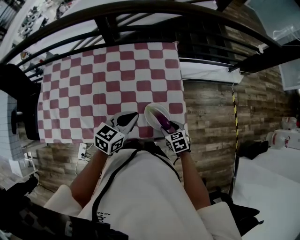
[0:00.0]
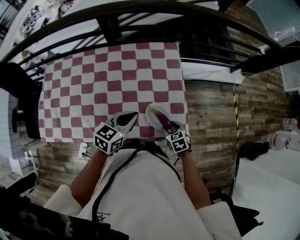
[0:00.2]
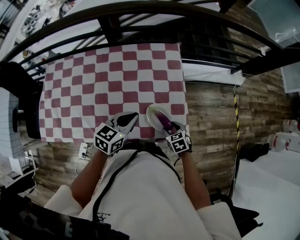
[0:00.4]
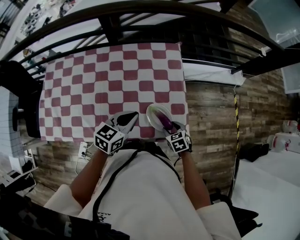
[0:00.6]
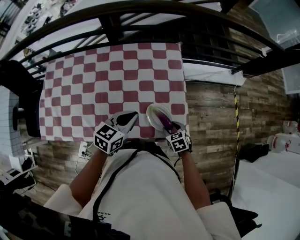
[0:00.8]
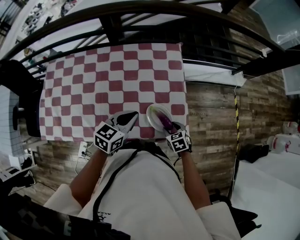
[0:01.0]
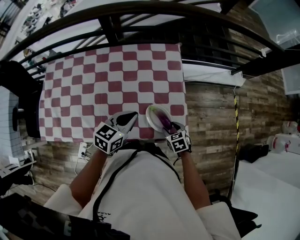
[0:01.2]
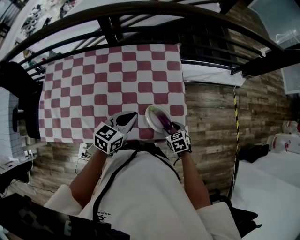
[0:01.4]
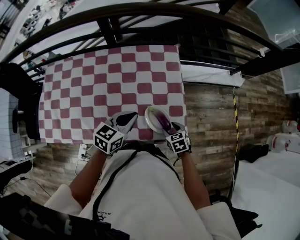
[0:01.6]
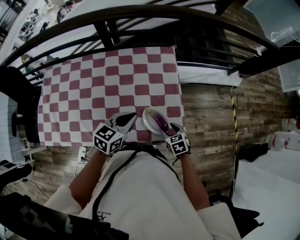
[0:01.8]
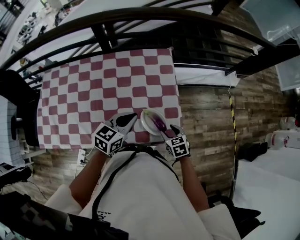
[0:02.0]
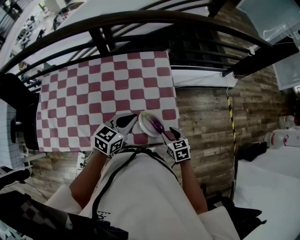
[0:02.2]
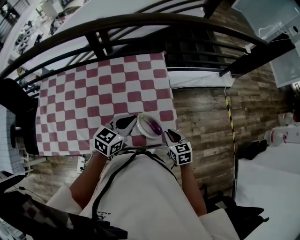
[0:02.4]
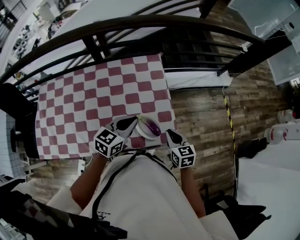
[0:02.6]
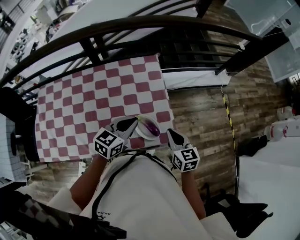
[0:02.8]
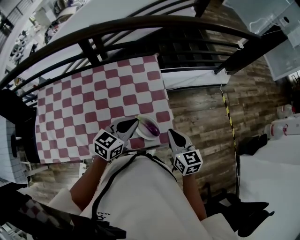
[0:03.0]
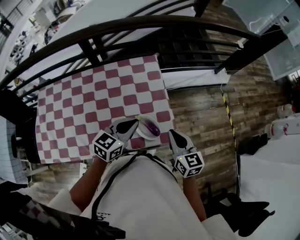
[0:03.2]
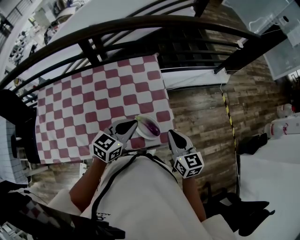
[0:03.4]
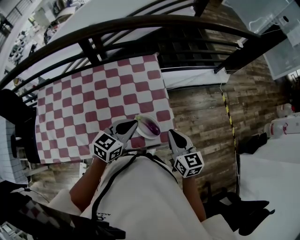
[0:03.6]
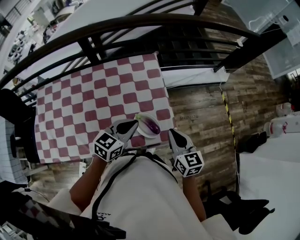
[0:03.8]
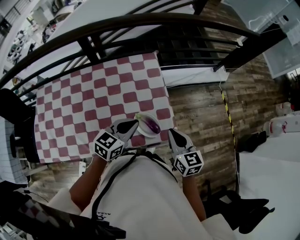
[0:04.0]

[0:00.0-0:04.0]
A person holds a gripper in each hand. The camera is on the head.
0:00.0 to 0:01.4: There are only small adjustments of the grippers.
0:01.4 to 0:02.6: The right gripper shifts roughly 15 cm upward, rotates approximately 30 degrees, and closes; the left gripper travels to the right by approximately 5 cm.
0:02.6 to 0:04.0: The right gripper heads upward, covering some 10 cm.

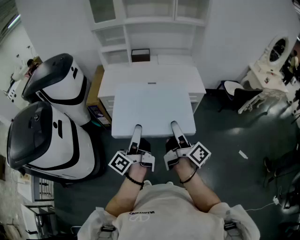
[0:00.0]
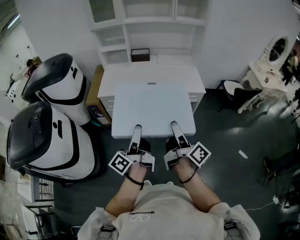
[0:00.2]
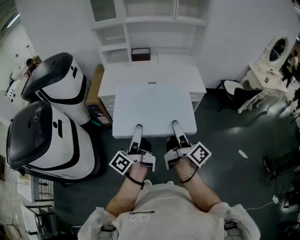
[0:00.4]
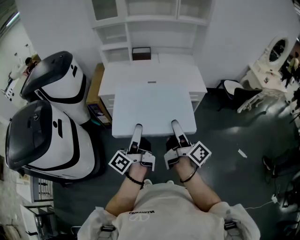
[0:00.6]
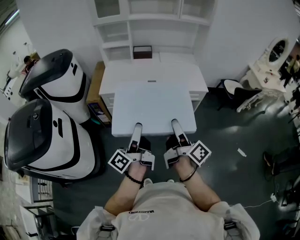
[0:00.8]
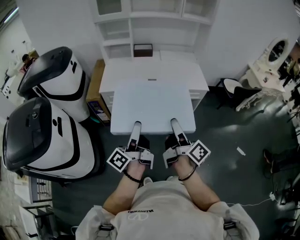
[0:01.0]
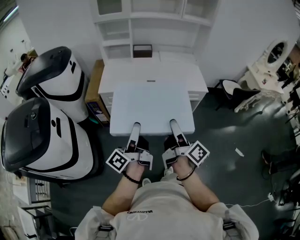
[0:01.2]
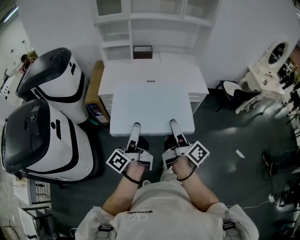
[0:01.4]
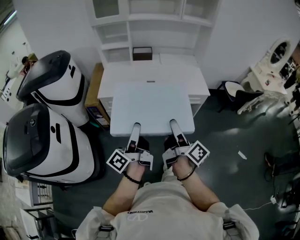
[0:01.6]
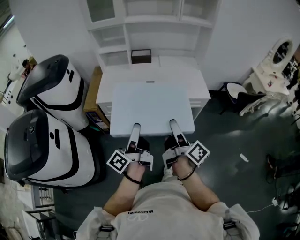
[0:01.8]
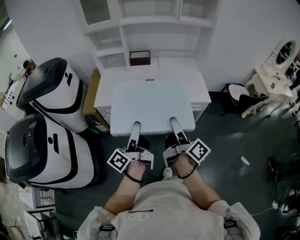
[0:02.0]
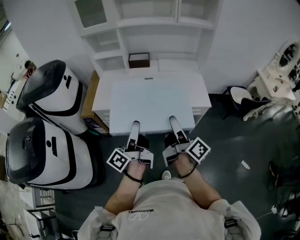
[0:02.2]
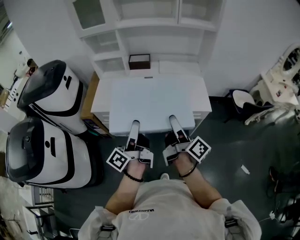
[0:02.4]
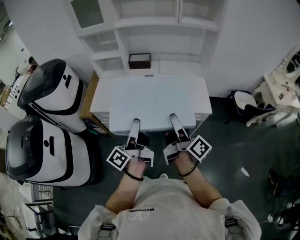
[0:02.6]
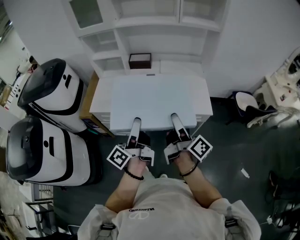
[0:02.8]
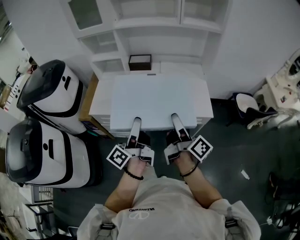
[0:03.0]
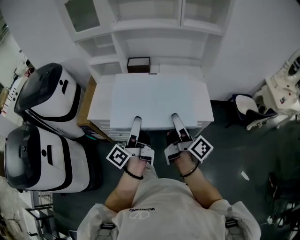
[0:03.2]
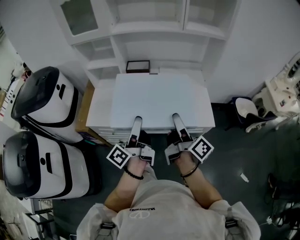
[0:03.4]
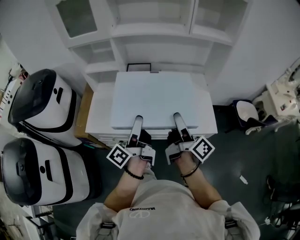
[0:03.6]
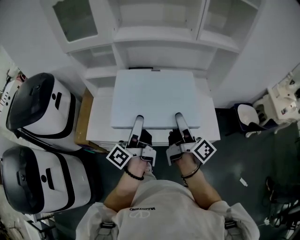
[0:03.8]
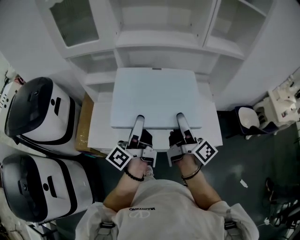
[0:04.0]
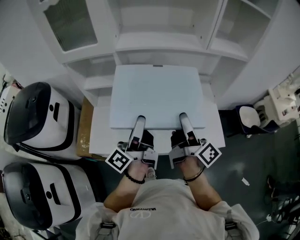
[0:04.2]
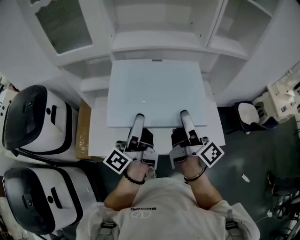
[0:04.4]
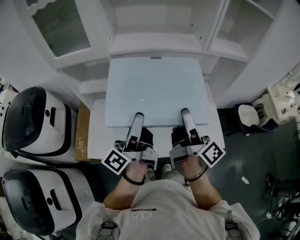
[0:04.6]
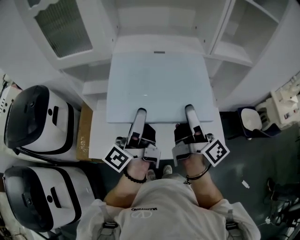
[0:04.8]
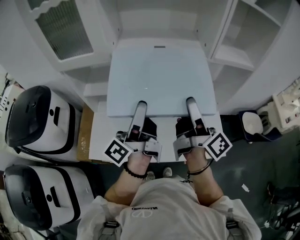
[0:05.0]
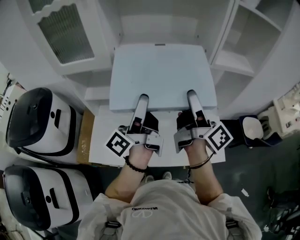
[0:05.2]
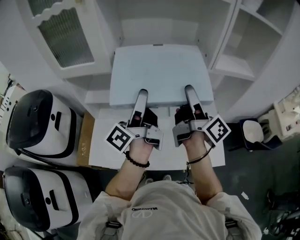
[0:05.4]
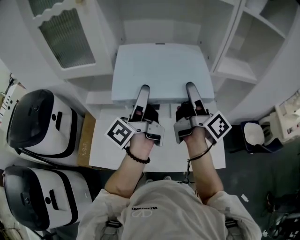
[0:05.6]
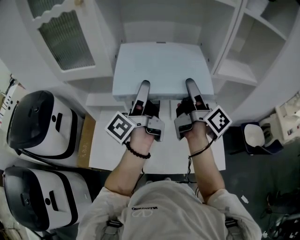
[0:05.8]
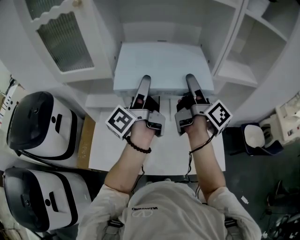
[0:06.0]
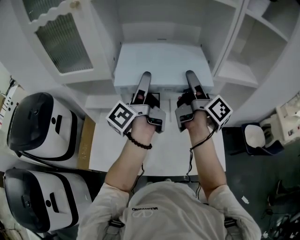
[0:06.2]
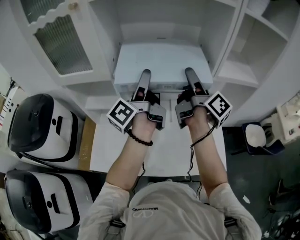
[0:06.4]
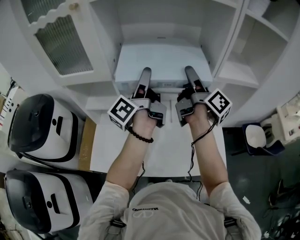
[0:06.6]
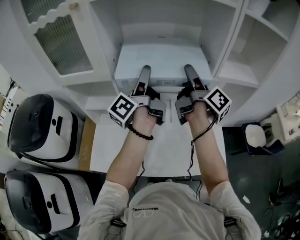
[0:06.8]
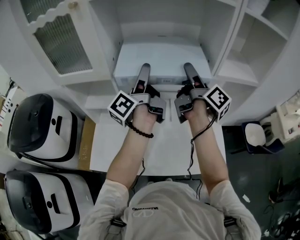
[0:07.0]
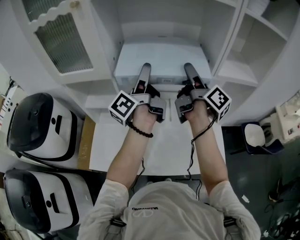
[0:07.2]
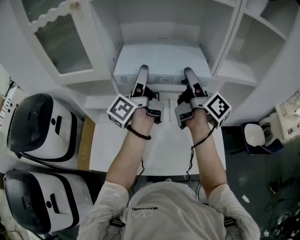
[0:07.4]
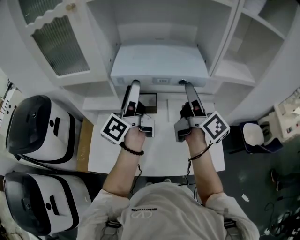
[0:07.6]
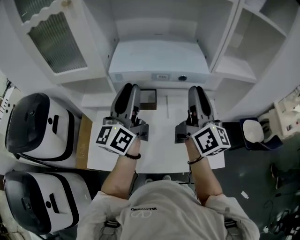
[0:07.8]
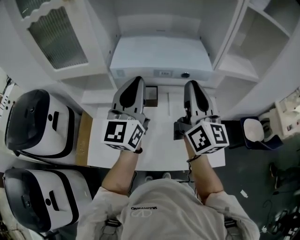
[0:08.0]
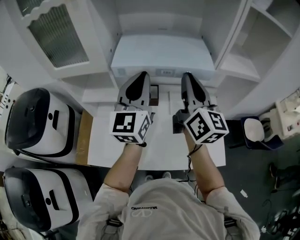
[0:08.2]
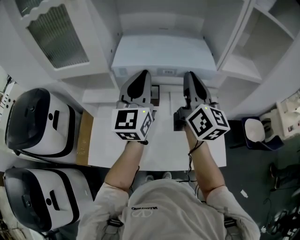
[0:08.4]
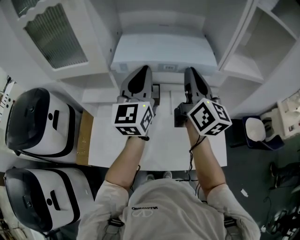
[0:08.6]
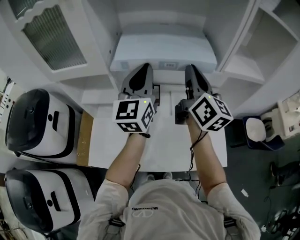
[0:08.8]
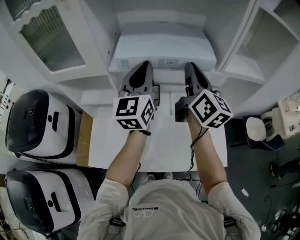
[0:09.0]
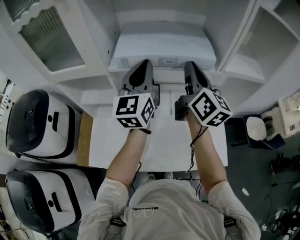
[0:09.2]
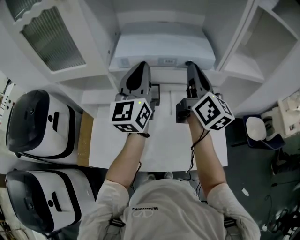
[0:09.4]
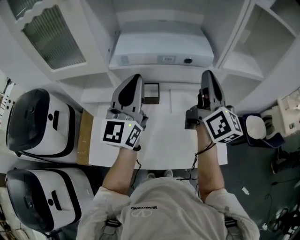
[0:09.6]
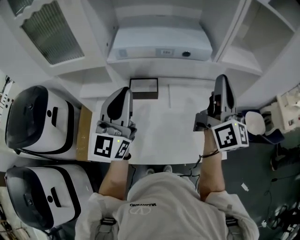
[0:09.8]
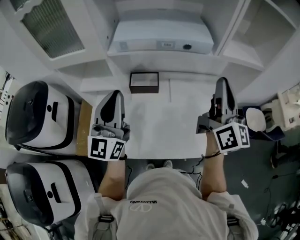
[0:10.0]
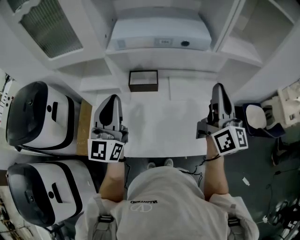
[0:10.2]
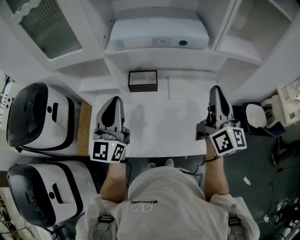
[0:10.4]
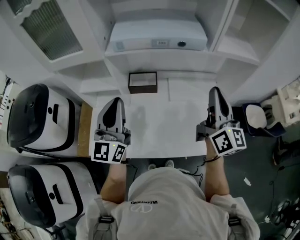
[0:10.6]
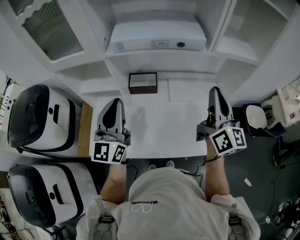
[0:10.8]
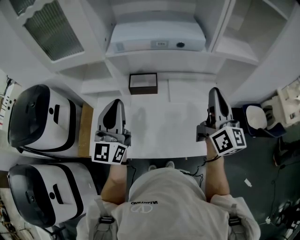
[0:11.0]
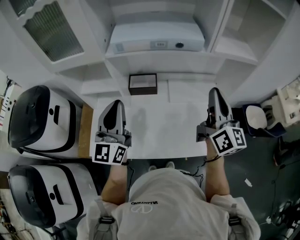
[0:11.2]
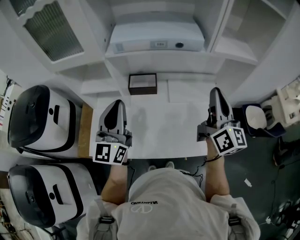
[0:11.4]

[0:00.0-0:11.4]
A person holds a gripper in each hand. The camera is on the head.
0:00.0 to 0:01.4: Both grippers move to the left, about 5 cm.
0:01.4 to 0:02.8: Both grippers travel together forward and to the right, about 25 cm.
0:02.8 to 0:04.2: Both grippers travel together forward, some 30 cm.
0:04.2 to 0:05.6: The grippers both shift forward and upward by approximately 20 cm.
0:05.6 to 0:07.2: Both grippers move forward, some 10 cm.
0:07.2 to 0:08.6: The right gripper twists some 50 degrees counterclockwise, seen from behind, and closes its fingers. Meanwhile the left gripper travels backward and back again, about 10 cm each way, rolls clockwise, seen from behind, by some 70 degrees, and closes.
0:08.6 to 0:10.0: The right gripper shifts roughly 15 cm to the right and backward; the left gripper heads backward and to the left, covering about 15 cm.
0:10.0 to 0:11.4: The right gripper shifts approximately 5 cm downward.

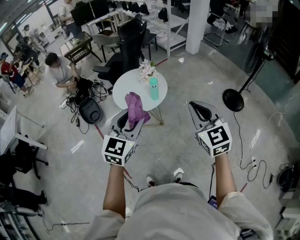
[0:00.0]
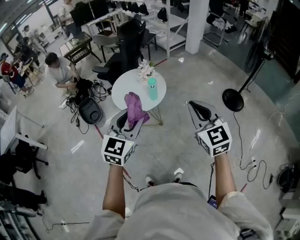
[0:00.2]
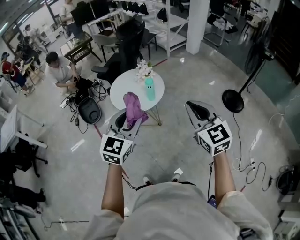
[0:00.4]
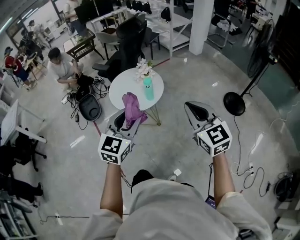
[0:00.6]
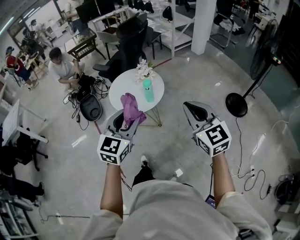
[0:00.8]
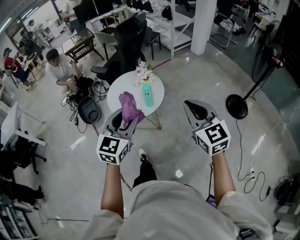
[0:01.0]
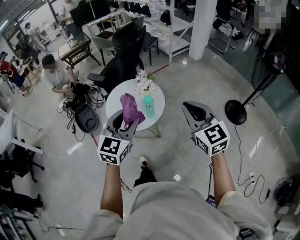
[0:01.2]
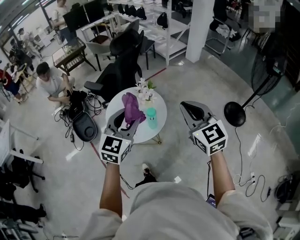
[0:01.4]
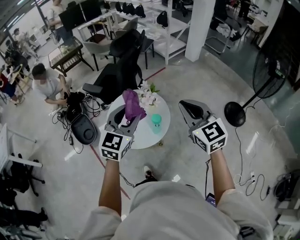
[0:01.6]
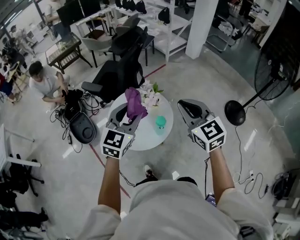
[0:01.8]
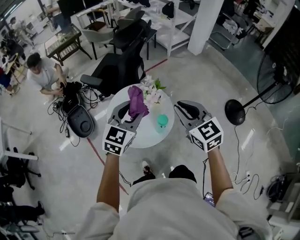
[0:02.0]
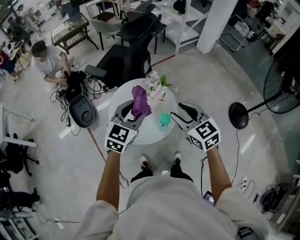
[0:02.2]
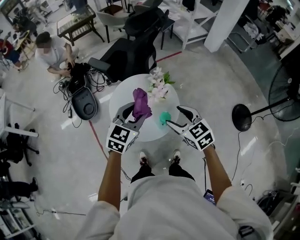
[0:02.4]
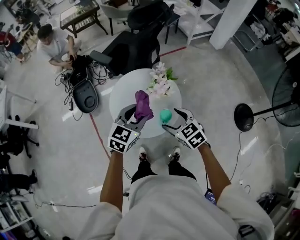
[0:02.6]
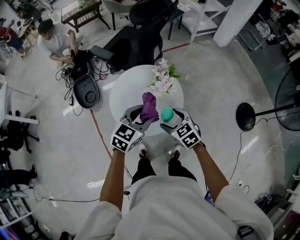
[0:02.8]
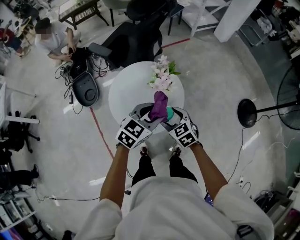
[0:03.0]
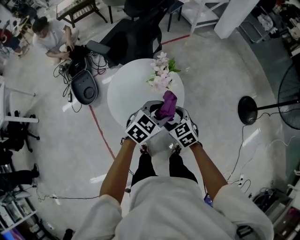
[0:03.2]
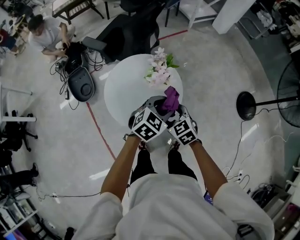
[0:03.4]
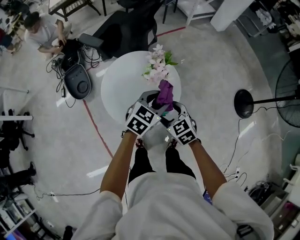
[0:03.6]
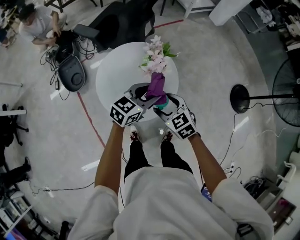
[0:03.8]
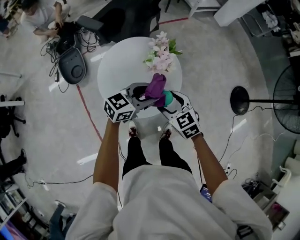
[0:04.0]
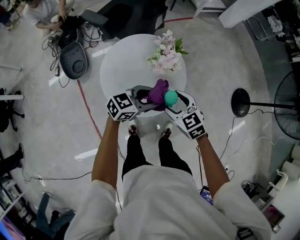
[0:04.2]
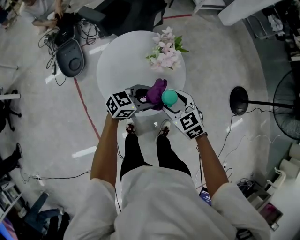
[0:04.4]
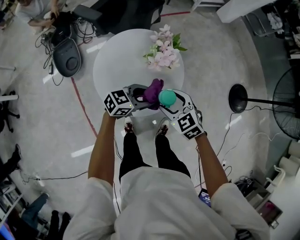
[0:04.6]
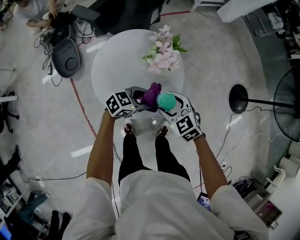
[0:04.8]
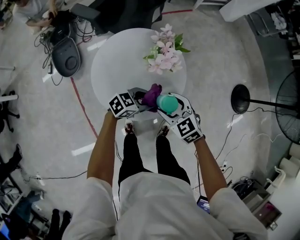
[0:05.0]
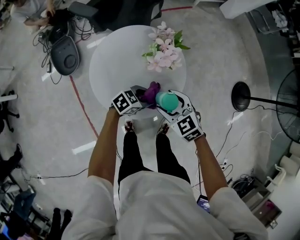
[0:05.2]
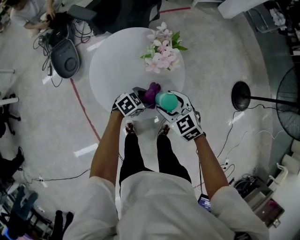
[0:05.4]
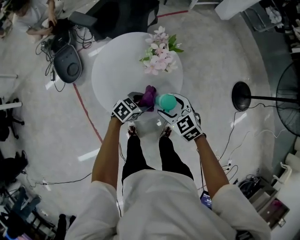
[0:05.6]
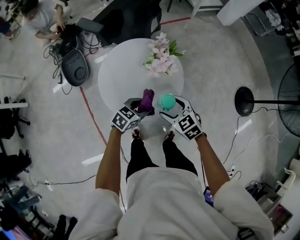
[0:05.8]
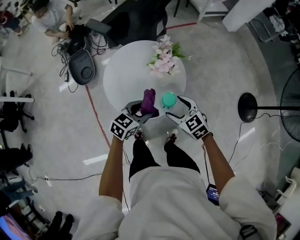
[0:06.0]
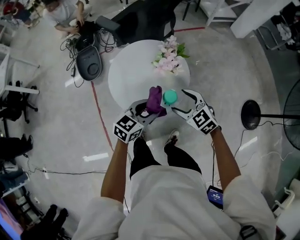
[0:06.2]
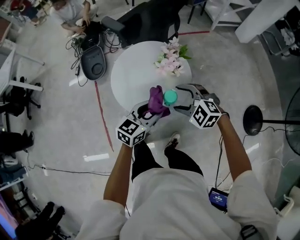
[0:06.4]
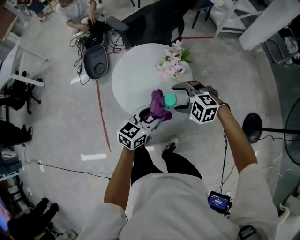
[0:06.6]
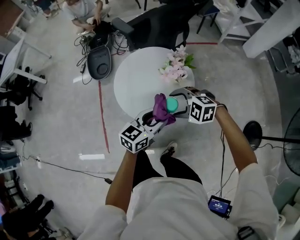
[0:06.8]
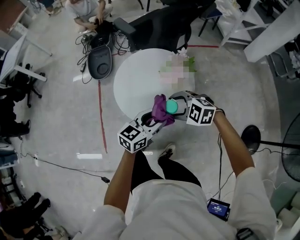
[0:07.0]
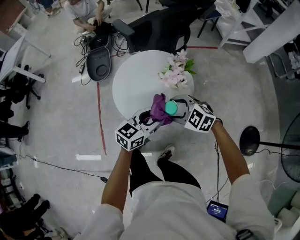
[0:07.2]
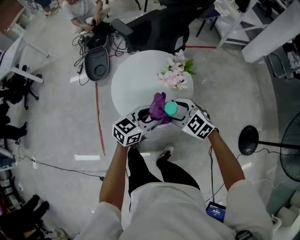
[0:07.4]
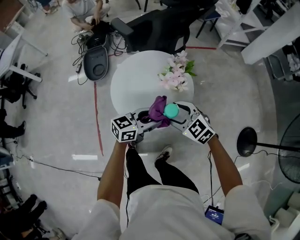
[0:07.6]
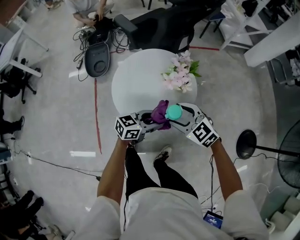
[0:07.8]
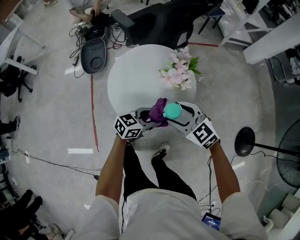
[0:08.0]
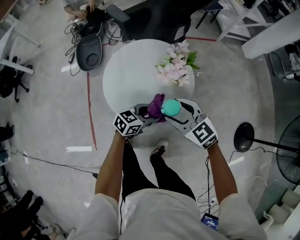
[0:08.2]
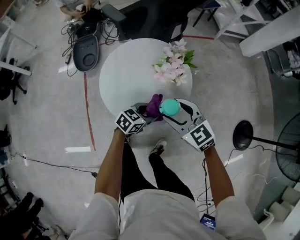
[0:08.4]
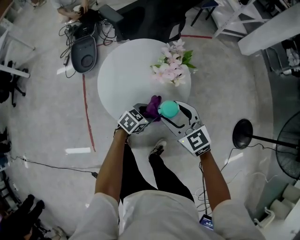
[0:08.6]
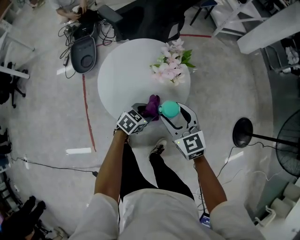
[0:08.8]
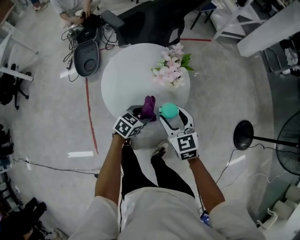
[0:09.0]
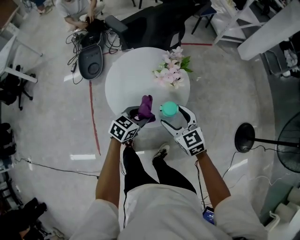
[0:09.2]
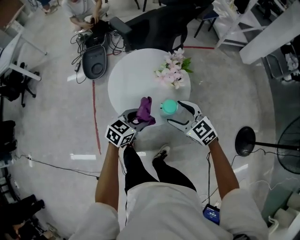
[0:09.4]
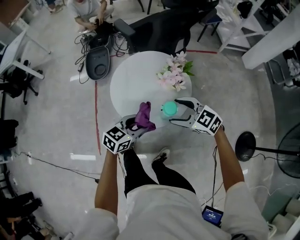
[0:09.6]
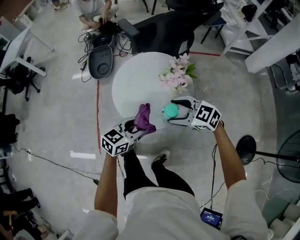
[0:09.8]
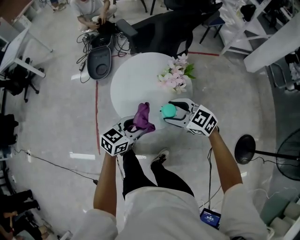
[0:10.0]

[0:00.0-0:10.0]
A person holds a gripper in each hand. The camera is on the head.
0:00.0 to 0:01.4: The grippers both shift forward by some 25 cm.
0:01.4 to 0:02.8: Both grippers move downward and forward, about 25 cm. The left gripper rotates approximately 20 degrees. The right gripper tilts its fingers some 30 degrees downward, and opens its fingers.
0:02.8 to 0:04.2: The left gripper moves downward, roughly 10 cm, and turns by approximately 30 degrees.
0:04.2 to 0:05.8: The left gripper moves downward, about 10 cm, and swivels approximately 20 degrees.
0:05.8 to 0:07.2: The right gripper turns by some 50 degrees. The left gripper moves upward, about 10 cm, and swivels about 40 degrees.
0:07.2 to 0:08.6: The right gripper rotates roughly 40 degrees. The left gripper goes approximately 20 cm downward, and turns by some 30 degrees.
0:08.6 to 0:10.0: The right gripper turns by roughly 30 degrees, while the left gripper is displaced upward by approximately 15 cm, and turns by approximately 30 degrees.
